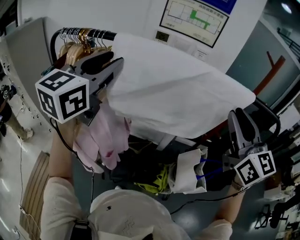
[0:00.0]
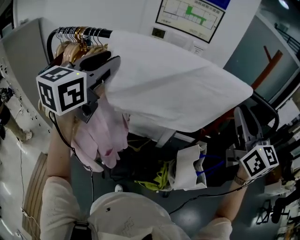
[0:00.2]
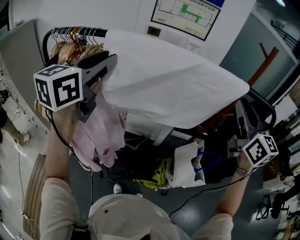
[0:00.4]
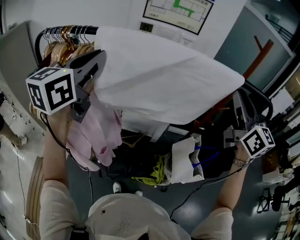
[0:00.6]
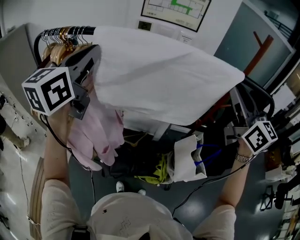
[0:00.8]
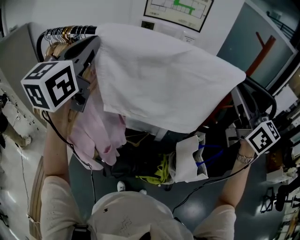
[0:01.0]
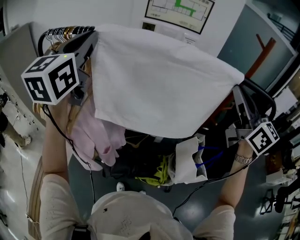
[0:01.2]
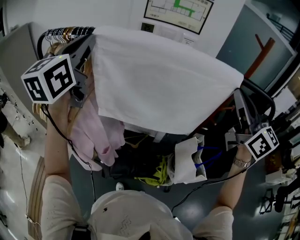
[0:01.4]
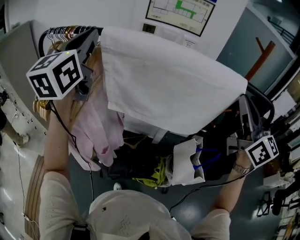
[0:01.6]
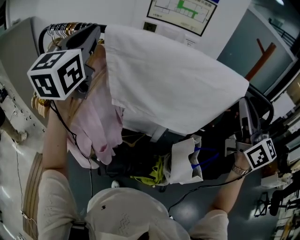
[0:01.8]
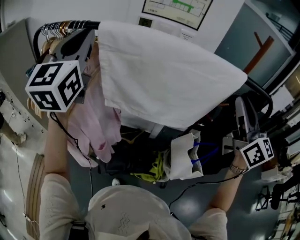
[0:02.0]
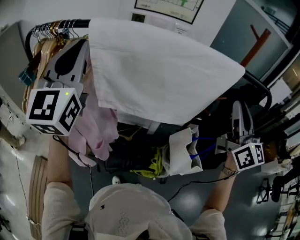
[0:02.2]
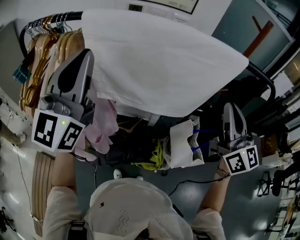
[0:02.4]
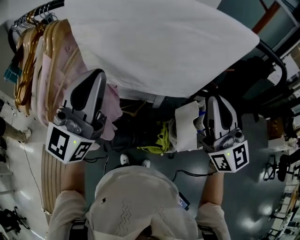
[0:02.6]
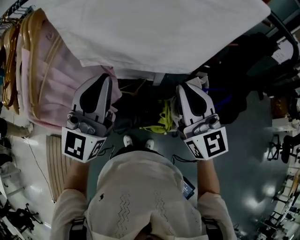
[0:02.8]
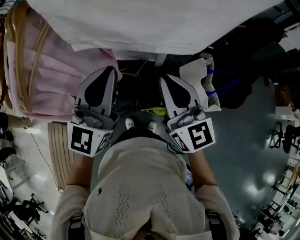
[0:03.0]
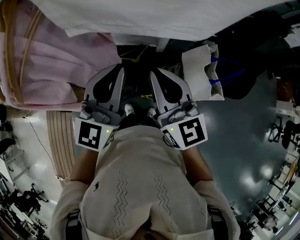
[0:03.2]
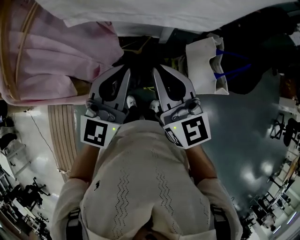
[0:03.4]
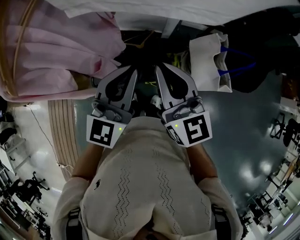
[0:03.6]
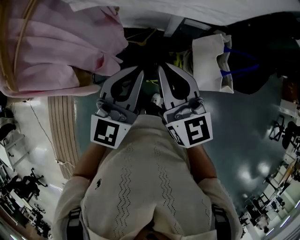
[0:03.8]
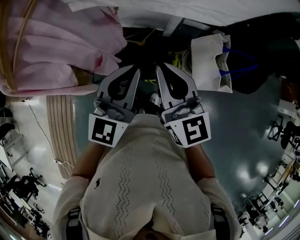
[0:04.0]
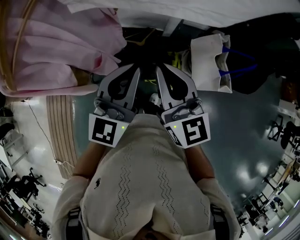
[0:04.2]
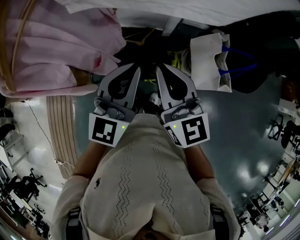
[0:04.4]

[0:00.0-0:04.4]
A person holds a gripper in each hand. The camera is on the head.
0:00.0 to 0:01.4: The left gripper changes place by approximately 5 cm, and closes its fingers.
0:01.4 to 0:03.0: The left gripper goes approximately 35 cm downward, to the right and backward; the right gripper heads downward and to the left, covering some 30 cm.
0:03.0 to 0:04.4: The left gripper moves downward, some 10 cm. The right gripper travels downward by roughly 5 cm.

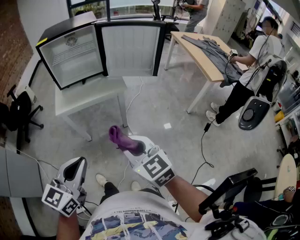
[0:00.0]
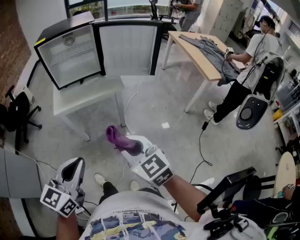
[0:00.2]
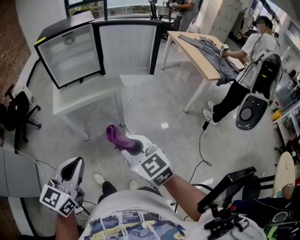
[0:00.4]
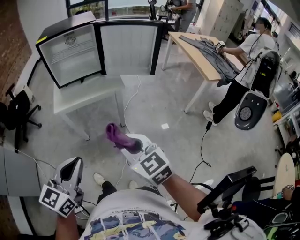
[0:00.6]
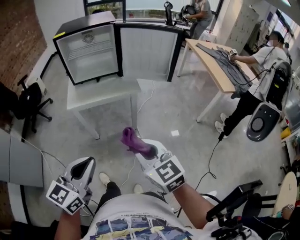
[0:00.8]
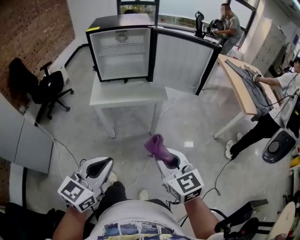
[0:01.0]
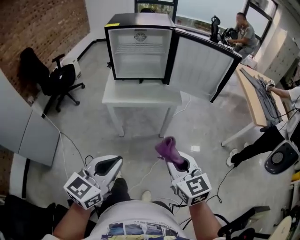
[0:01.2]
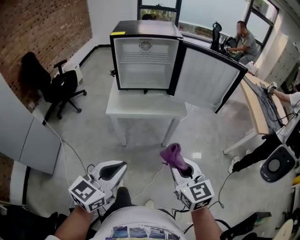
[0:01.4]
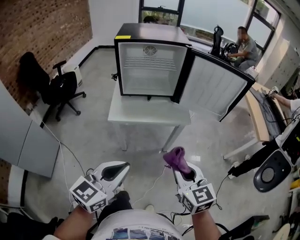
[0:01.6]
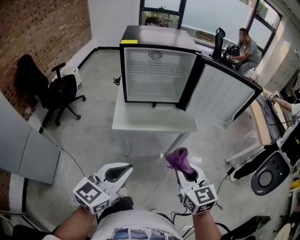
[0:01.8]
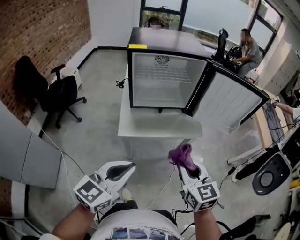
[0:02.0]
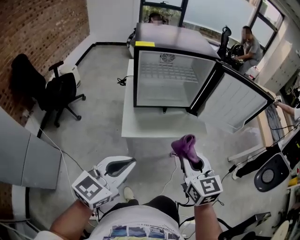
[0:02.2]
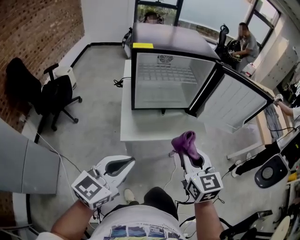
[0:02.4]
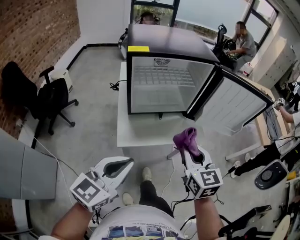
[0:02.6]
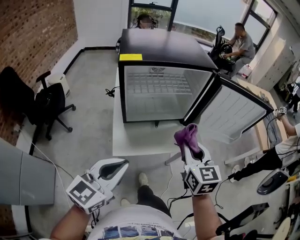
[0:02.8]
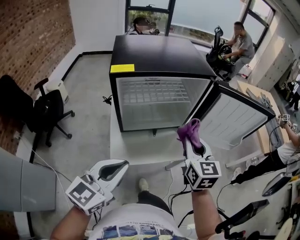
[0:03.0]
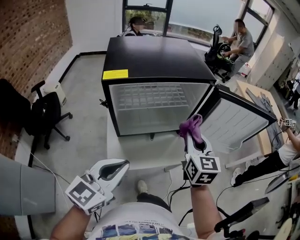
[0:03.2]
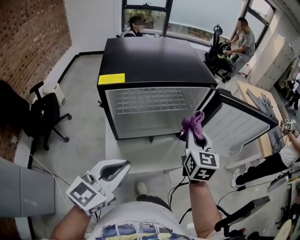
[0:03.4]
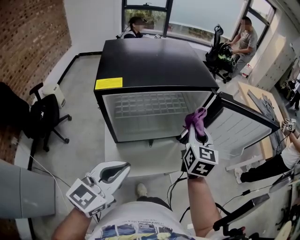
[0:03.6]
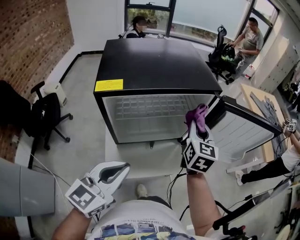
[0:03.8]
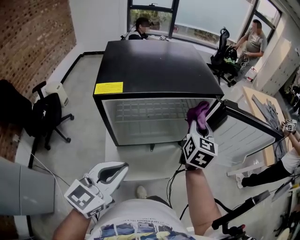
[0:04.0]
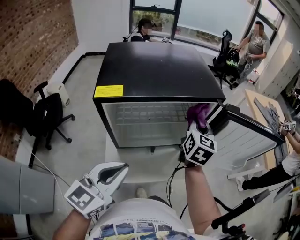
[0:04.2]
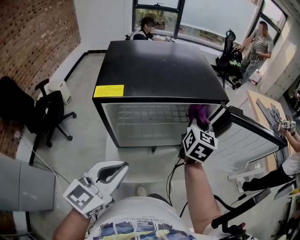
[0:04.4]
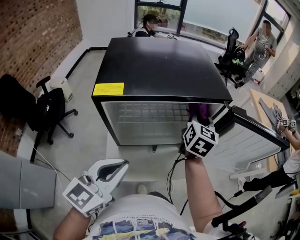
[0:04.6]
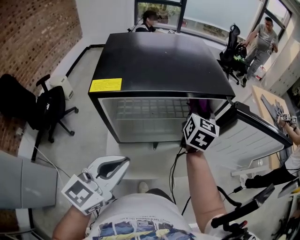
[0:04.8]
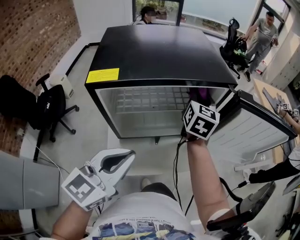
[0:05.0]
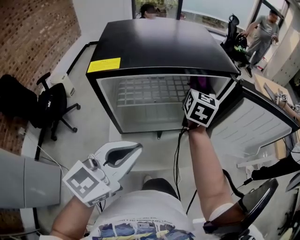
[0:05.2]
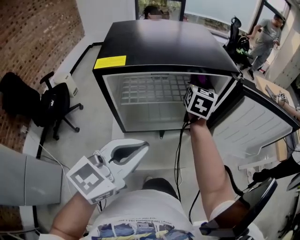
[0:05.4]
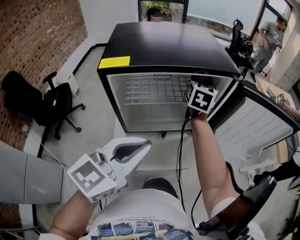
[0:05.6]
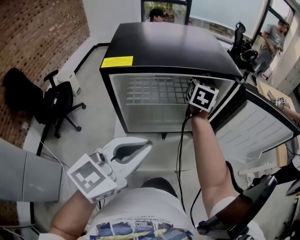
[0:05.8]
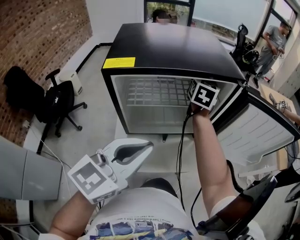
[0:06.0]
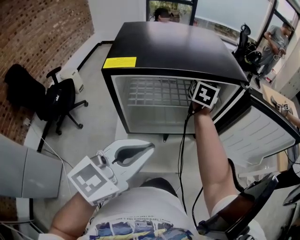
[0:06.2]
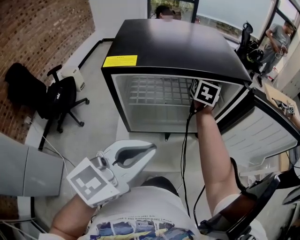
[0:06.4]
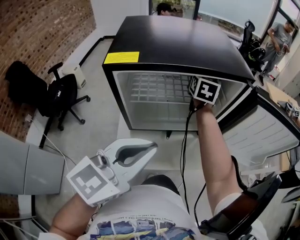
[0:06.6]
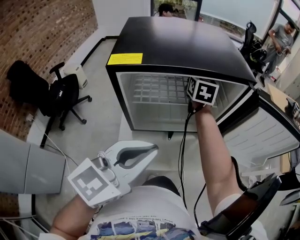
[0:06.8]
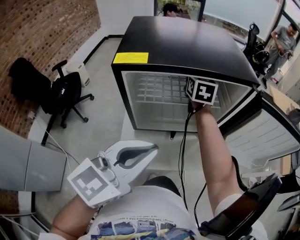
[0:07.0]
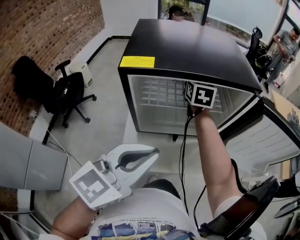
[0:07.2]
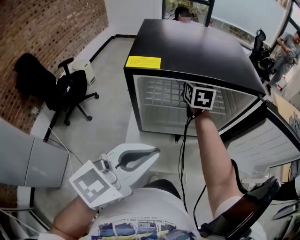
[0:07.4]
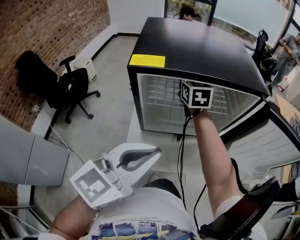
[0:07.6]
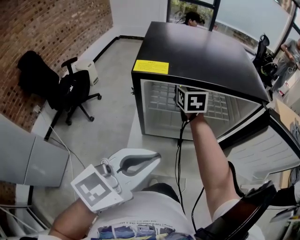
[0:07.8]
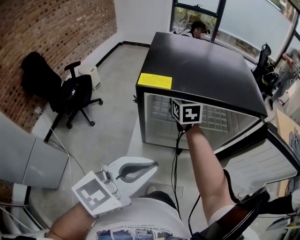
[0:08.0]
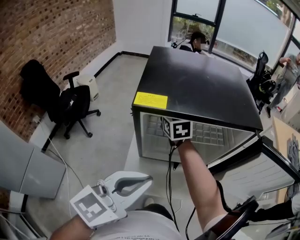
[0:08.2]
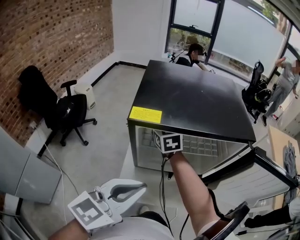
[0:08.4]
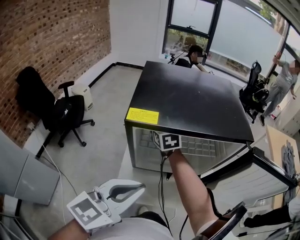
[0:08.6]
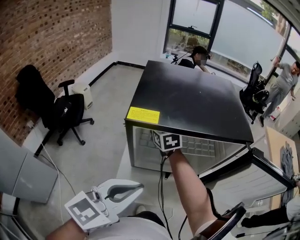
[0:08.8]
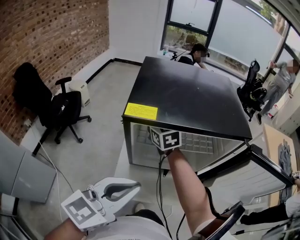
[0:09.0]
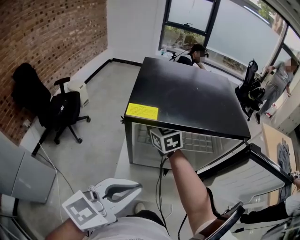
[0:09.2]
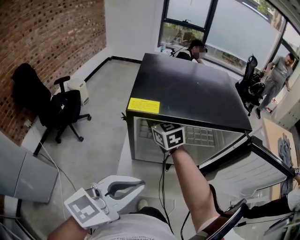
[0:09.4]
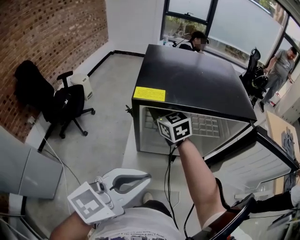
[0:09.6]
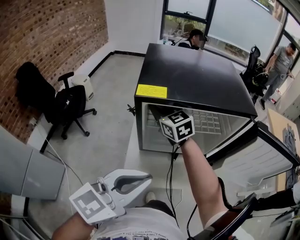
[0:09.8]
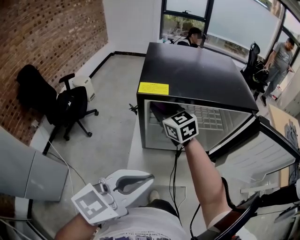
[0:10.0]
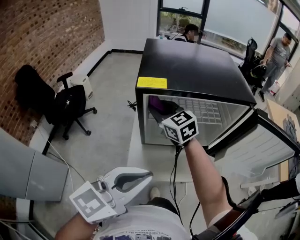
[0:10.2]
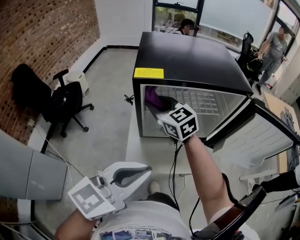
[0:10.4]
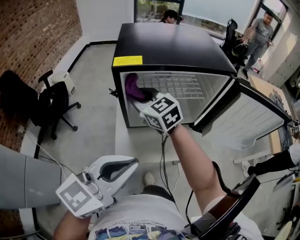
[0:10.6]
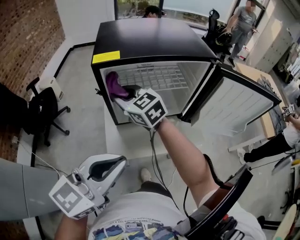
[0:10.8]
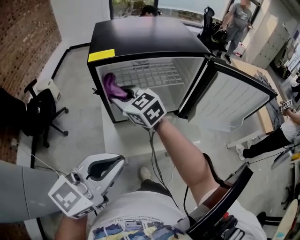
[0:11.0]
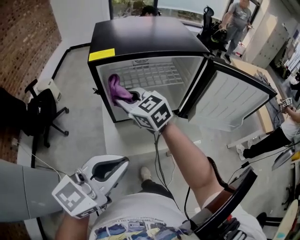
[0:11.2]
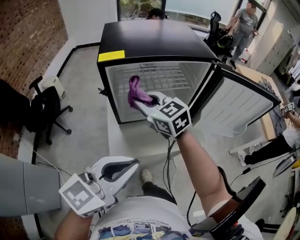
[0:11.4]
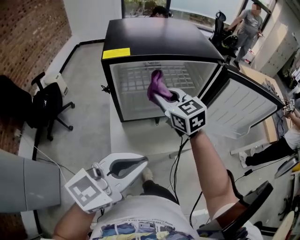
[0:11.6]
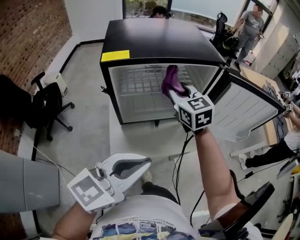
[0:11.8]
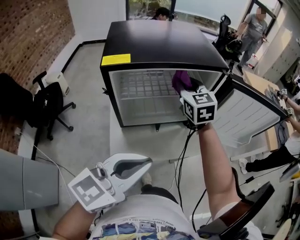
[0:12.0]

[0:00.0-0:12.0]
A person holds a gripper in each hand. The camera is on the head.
0:00.0 to 0:01.6: The right gripper is displaced forward by about 10 cm; the left gripper is displaced forward and to the left by about 10 cm.
0:01.6 to 0:03.0: The right gripper moves forward, about 30 cm, and changes its angle by roughly 20 degrees; the left gripper moves forward and to the left, approximately 25 cm.
0:03.0 to 0:04.4: The left gripper shifts roughly 10 cm forward. Meanwhile the right gripper shifts about 20 cm forward.
0:04.4 to 0:06.0: The right gripper shifts about 10 cm forward and to the left.
0:06.0 to 0:07.6: The right gripper moves to the left, roughly 15 cm, and turns by some 30 degrees.
0:07.6 to 0:09.0: The right gripper shifts approximately 10 cm to the left.
0:09.0 to 0:10.4: The right gripper travels backward by roughly 10 cm; the left gripper is displaced backward by approximately 5 cm.
0:10.4 to 0:12.0: The left gripper heads to the right, covering roughly 5 cm. The right gripper shifts roughly 20 cm to the right, and rotates approximately 30 degrees.

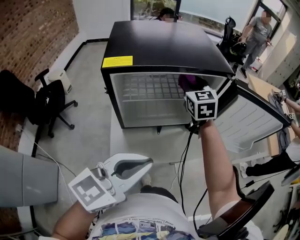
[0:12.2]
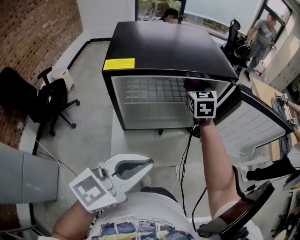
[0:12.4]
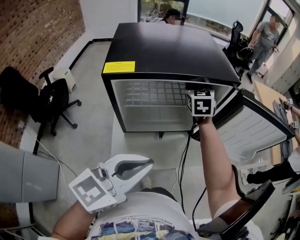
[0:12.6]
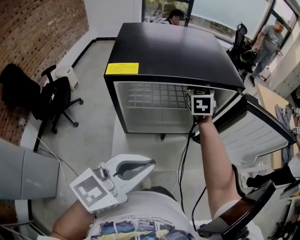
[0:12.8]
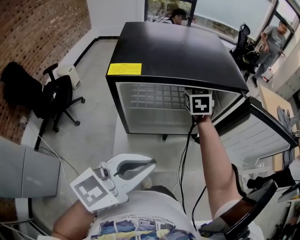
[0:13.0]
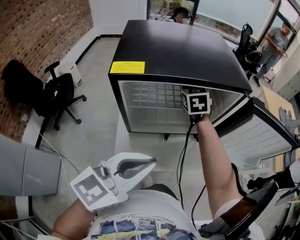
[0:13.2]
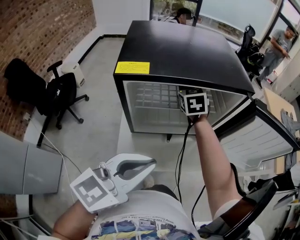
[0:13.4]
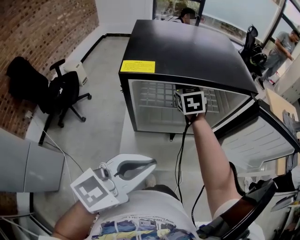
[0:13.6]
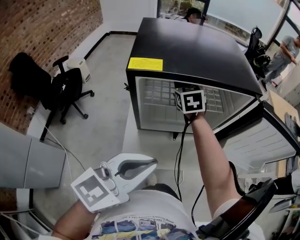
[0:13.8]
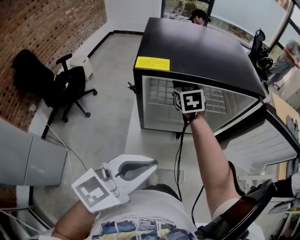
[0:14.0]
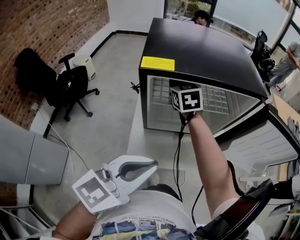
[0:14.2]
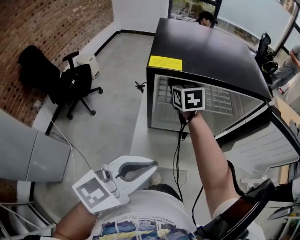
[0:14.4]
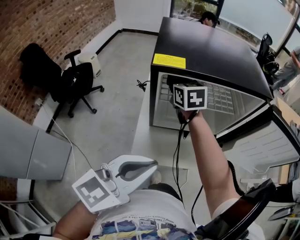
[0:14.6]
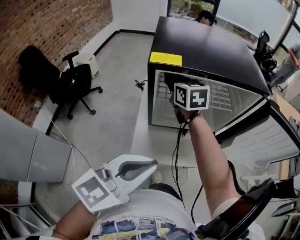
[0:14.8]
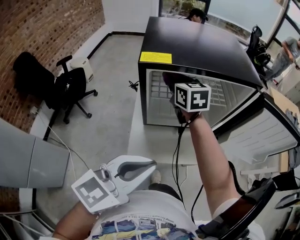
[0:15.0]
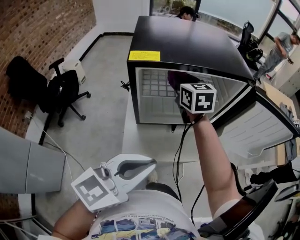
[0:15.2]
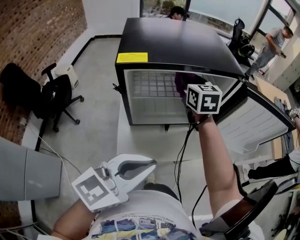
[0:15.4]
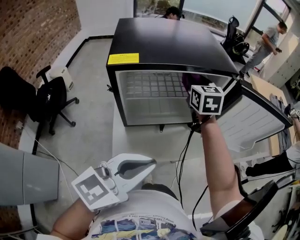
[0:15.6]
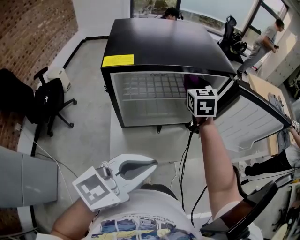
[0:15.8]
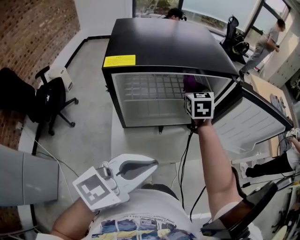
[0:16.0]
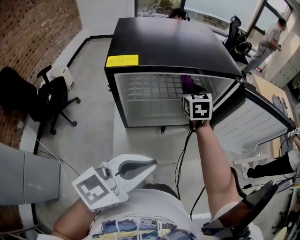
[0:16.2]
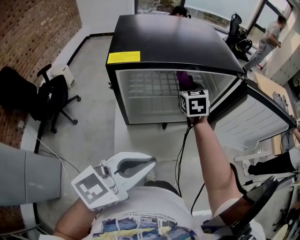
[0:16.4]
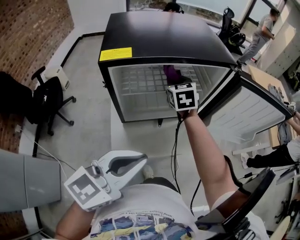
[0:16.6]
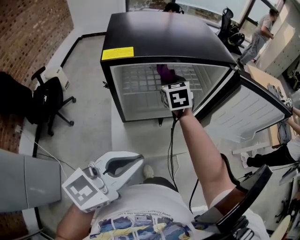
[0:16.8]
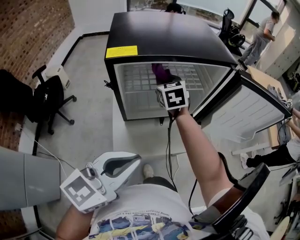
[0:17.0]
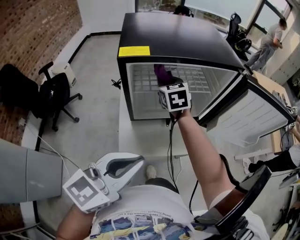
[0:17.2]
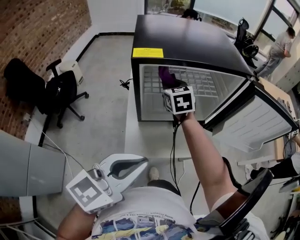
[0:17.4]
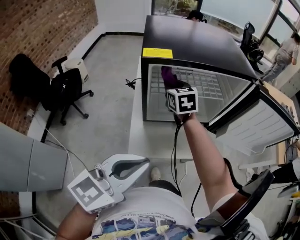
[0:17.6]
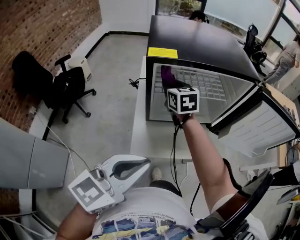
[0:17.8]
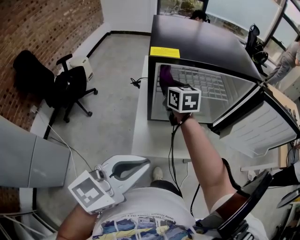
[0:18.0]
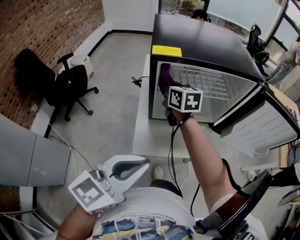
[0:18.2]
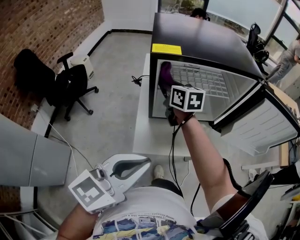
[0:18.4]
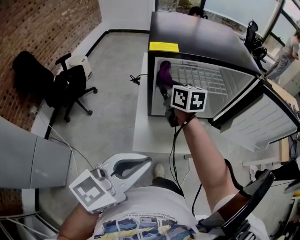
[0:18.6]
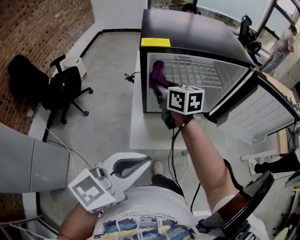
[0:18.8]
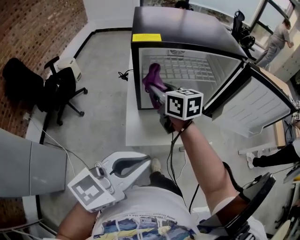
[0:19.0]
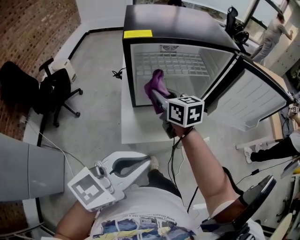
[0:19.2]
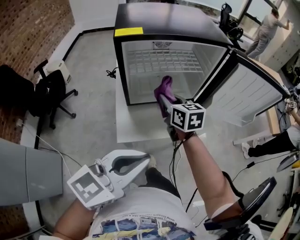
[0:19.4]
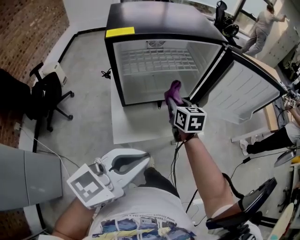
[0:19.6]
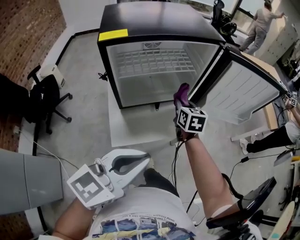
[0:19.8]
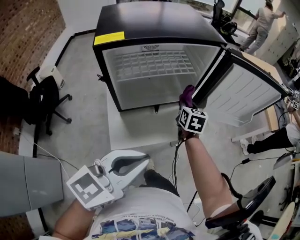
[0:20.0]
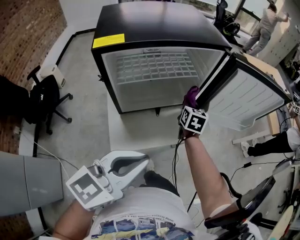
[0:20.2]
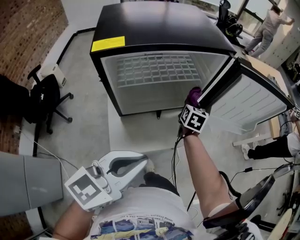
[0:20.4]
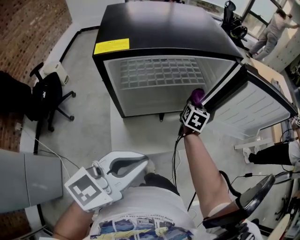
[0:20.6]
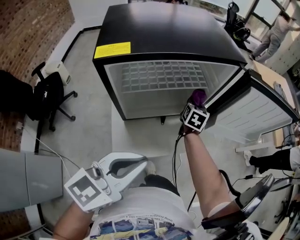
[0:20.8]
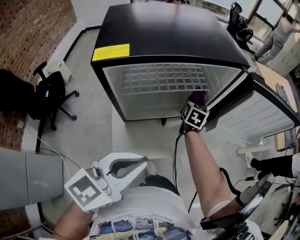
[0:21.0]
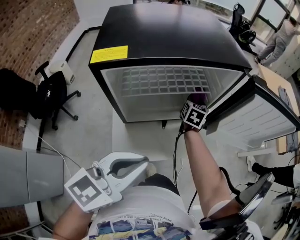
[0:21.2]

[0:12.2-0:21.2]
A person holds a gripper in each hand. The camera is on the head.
0:12.2 to 0:13.8: The right gripper moves to the left and downward, approximately 15 cm.
0:13.8 to 0:15.2: The right gripper goes roughly 10 cm upward and backward, and travels to the left and back again, roughly 10 cm each way.
0:15.2 to 0:16.6: The right gripper heads downward and to the right, covering about 10 cm.
0:16.6 to 0:18.2: The left gripper goes roughly 10 cm backward and to the left. The right gripper goes about 20 cm to the left and backward, and changes its angle by approximately 30 degrees.
0:18.2 to 0:19.8: The left gripper changes place by roughly 10 cm, while the right gripper moves some 30 cm, and changes its angle by approximately 30 degrees.
0:19.8 to 0:21.2: The left gripper goes some 10 cm forward. Meanwhile the right gripper heads forward, covering some 15 cm.
